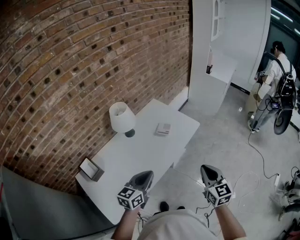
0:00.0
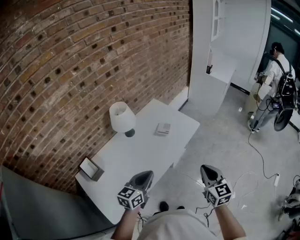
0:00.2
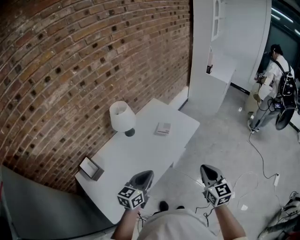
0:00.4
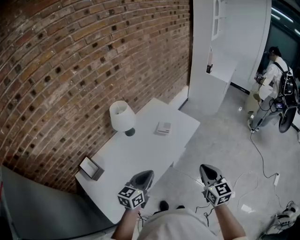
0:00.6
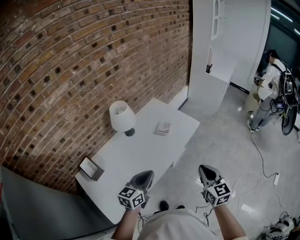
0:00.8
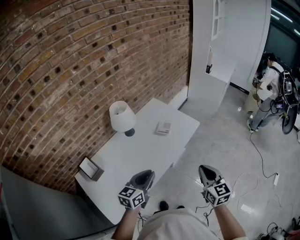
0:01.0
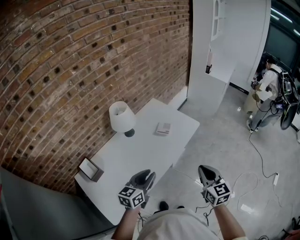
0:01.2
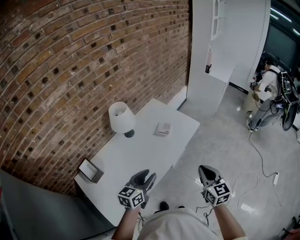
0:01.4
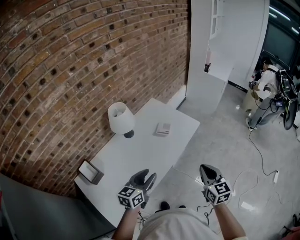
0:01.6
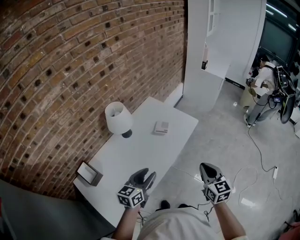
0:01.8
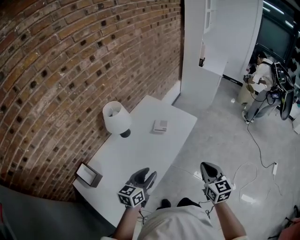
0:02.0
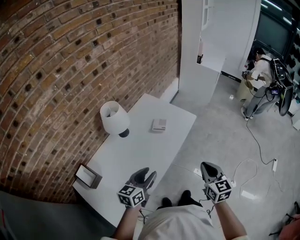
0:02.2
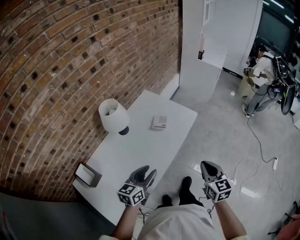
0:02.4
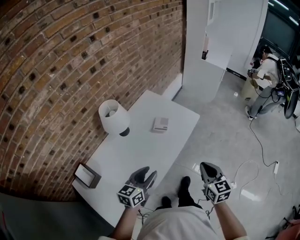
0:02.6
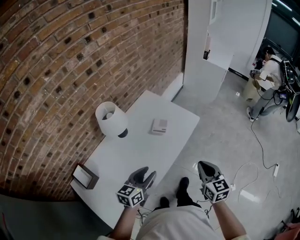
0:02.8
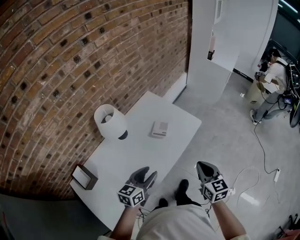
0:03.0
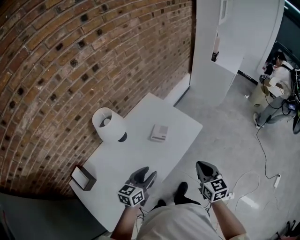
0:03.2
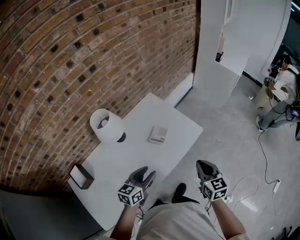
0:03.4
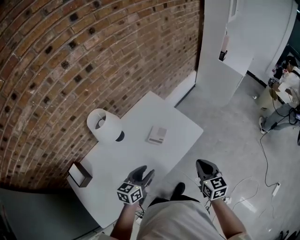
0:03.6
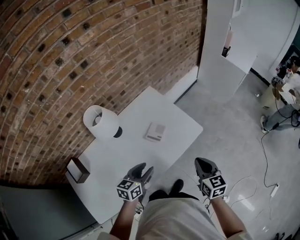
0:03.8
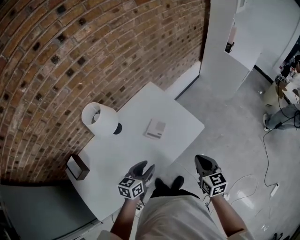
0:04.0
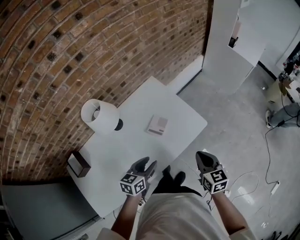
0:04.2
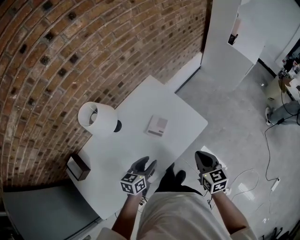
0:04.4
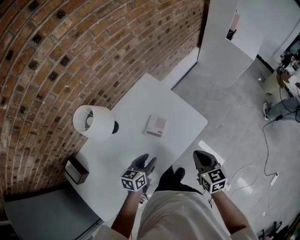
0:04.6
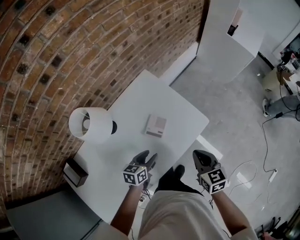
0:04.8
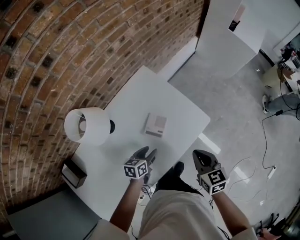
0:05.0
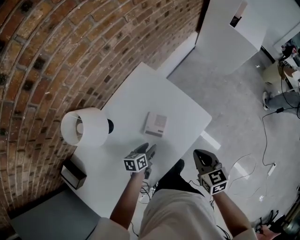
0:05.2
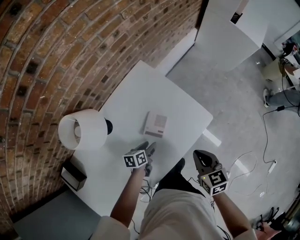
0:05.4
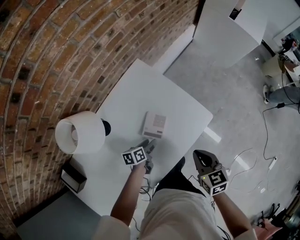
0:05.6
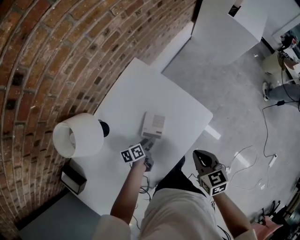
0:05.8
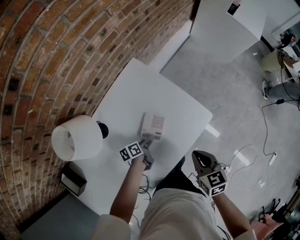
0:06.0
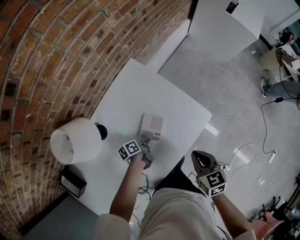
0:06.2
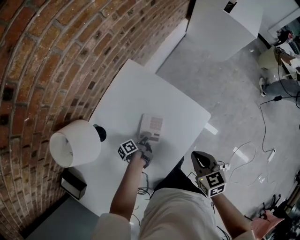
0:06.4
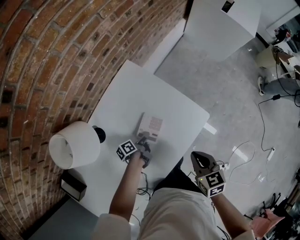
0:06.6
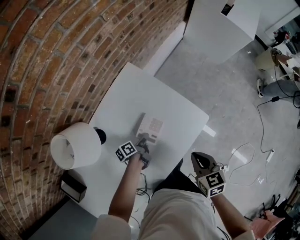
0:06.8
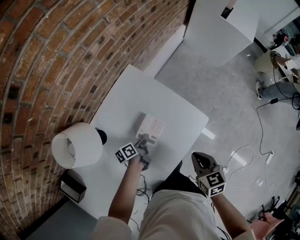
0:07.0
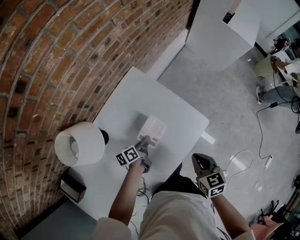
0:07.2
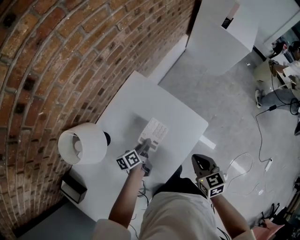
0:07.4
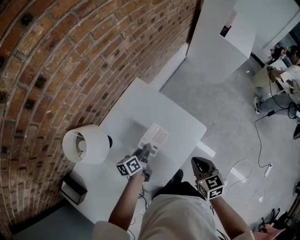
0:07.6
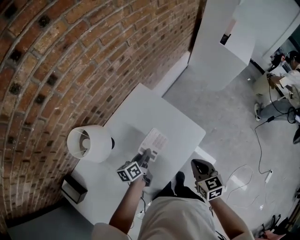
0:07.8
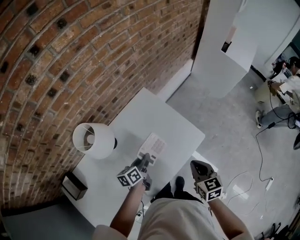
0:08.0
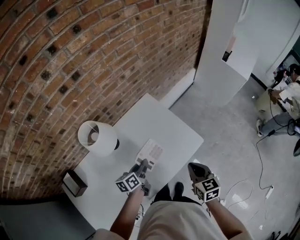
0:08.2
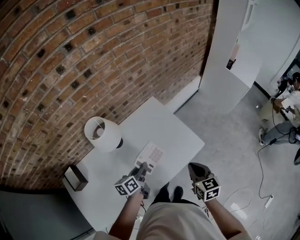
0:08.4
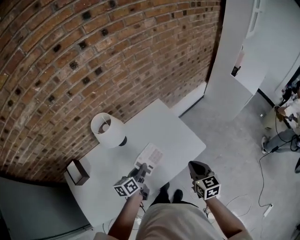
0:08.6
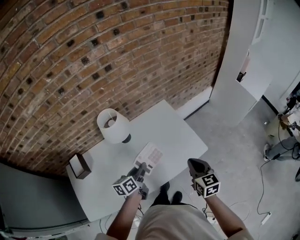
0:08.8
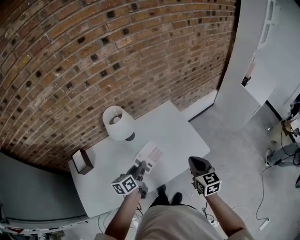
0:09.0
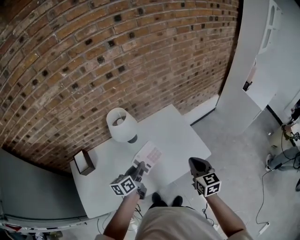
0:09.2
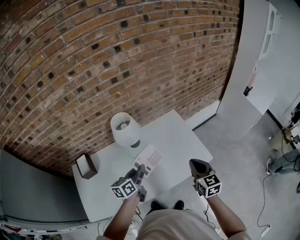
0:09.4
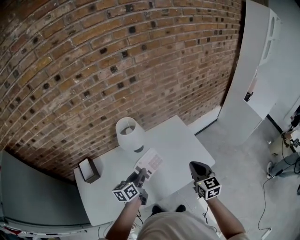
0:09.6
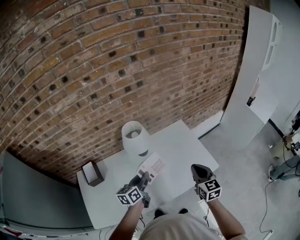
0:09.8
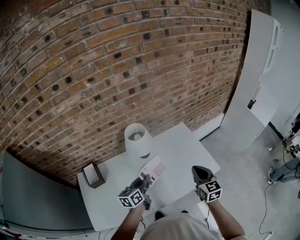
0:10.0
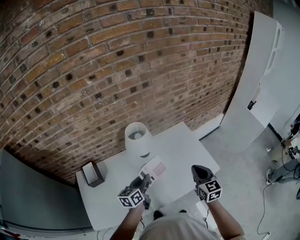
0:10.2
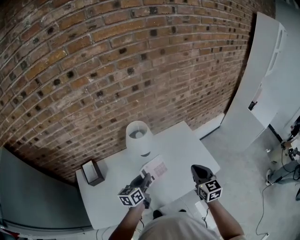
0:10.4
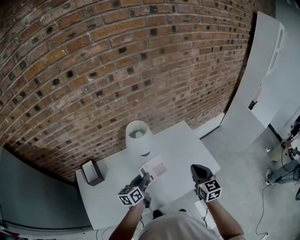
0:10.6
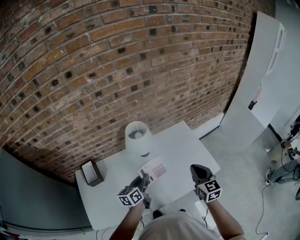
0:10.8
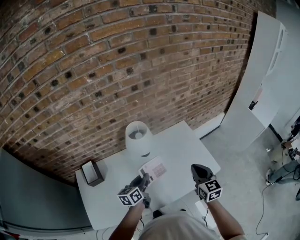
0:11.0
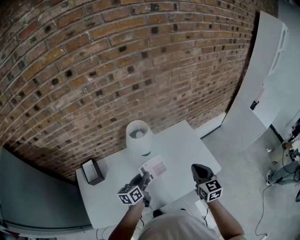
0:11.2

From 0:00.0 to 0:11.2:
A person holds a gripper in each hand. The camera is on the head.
From 0:00.0 to 0:01.6: The left gripper opens up.
From 0:01.6 to 0:03.2: Both grippers move forward, about 15 cm.
From 0:03.2 to 0:04.8: Both grippers travel together forward and downward, approximately 20 cm. The left gripper swivels approximately 20 degrees.
From 0:04.8 to 0:06.4: The left gripper is displaced downward and forward by about 20 cm, rolls counterclockwise, seen from behind, by approximately 60 degrees, and closes its fingers. The right gripper heads downward, covering approximately 5 cm.
From 0:06.4 to 0:08.0: The right gripper goes roughly 10 cm upward. The left gripper heads upward, covering about 20 cm, and changes its angle by approximately 40 degrees.
From 0:08.0 to 0:09.6: The right gripper shifts about 15 cm upward and to the left, and swivels about 30 degrees. Meanwhile the left gripper moves upward, backward and to the left, some 25 cm, and turns by some 30 degrees.
From 0:09.6 to 0:11.2: Both grippers travel together to the left, about 5 cm.

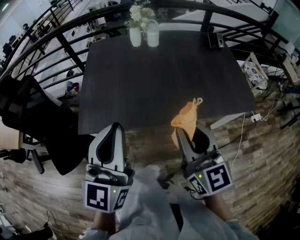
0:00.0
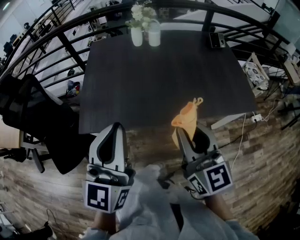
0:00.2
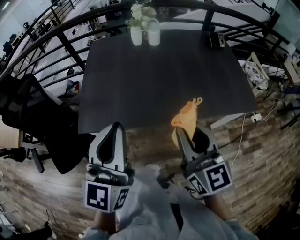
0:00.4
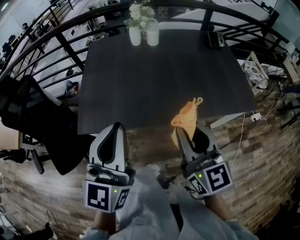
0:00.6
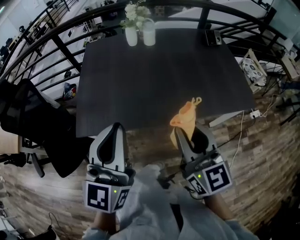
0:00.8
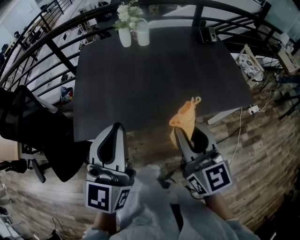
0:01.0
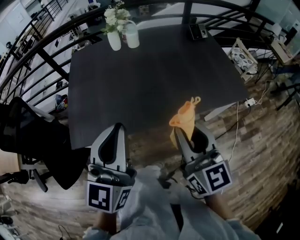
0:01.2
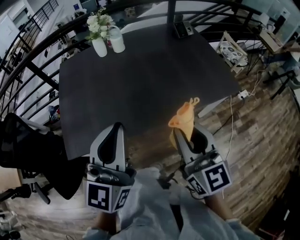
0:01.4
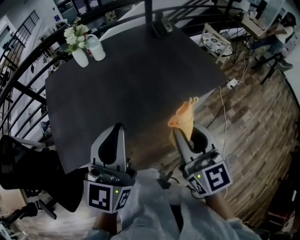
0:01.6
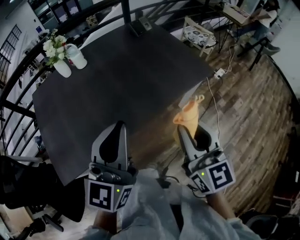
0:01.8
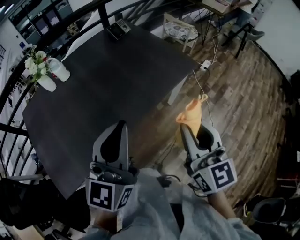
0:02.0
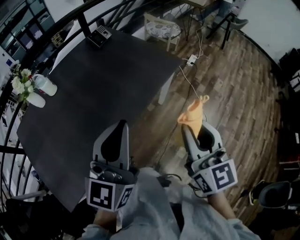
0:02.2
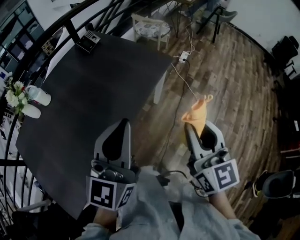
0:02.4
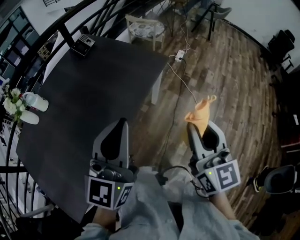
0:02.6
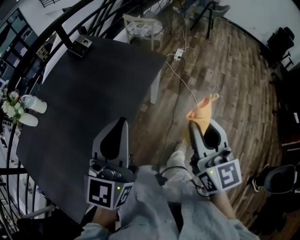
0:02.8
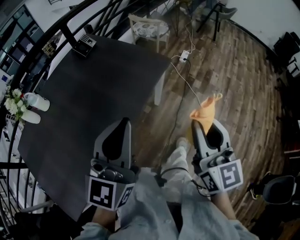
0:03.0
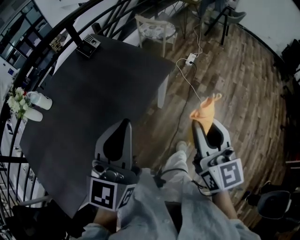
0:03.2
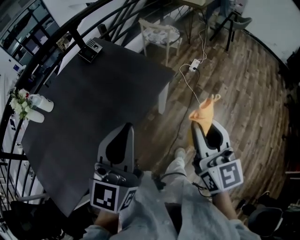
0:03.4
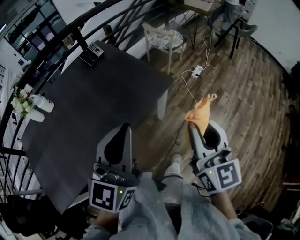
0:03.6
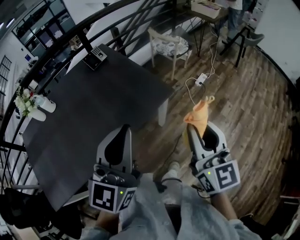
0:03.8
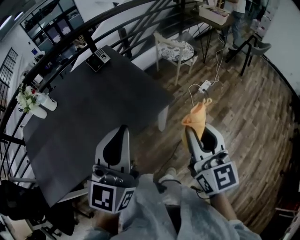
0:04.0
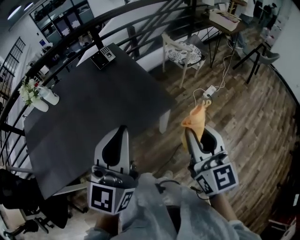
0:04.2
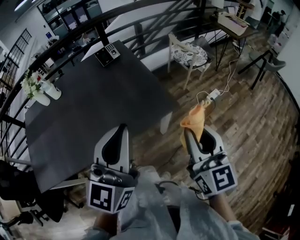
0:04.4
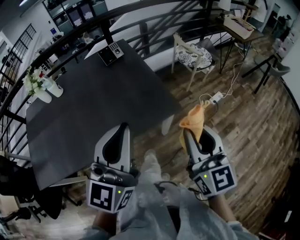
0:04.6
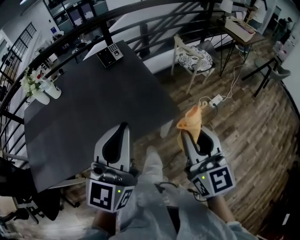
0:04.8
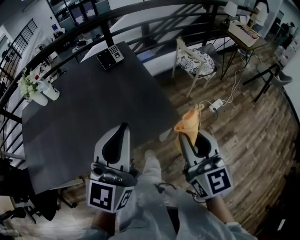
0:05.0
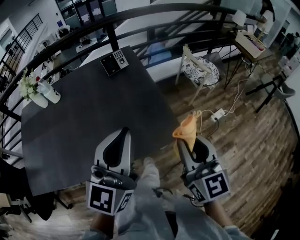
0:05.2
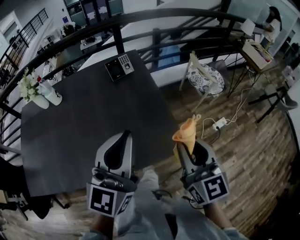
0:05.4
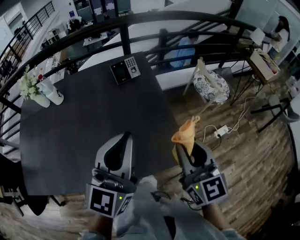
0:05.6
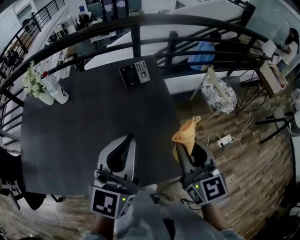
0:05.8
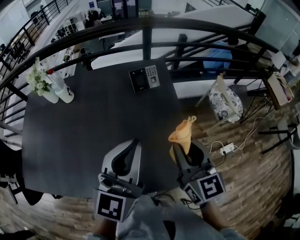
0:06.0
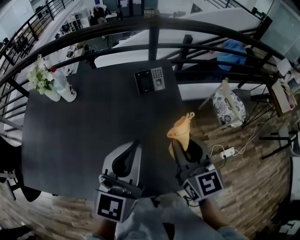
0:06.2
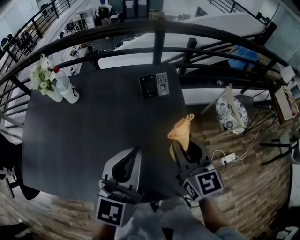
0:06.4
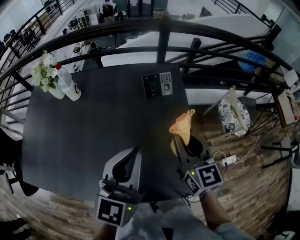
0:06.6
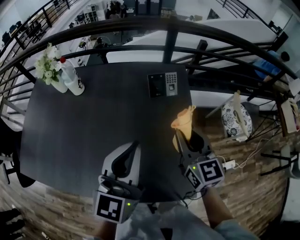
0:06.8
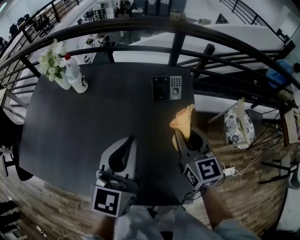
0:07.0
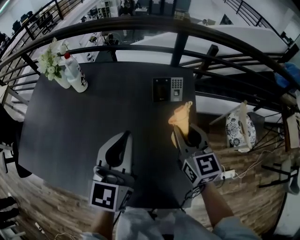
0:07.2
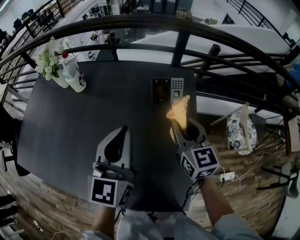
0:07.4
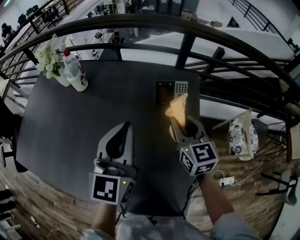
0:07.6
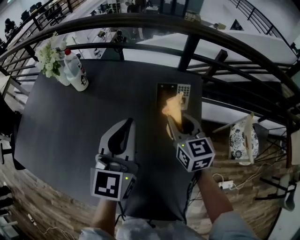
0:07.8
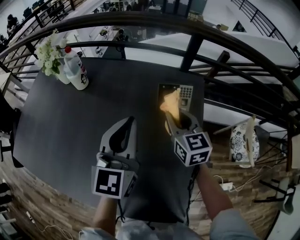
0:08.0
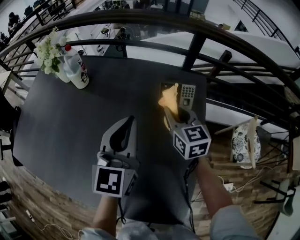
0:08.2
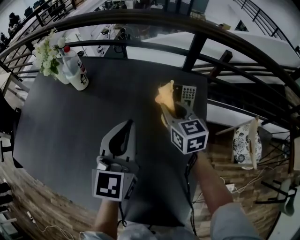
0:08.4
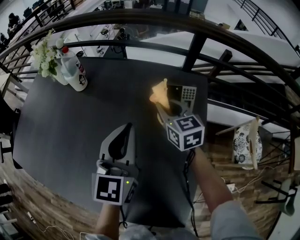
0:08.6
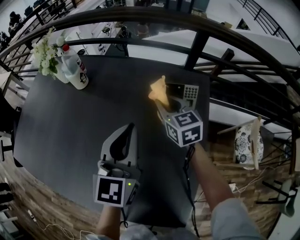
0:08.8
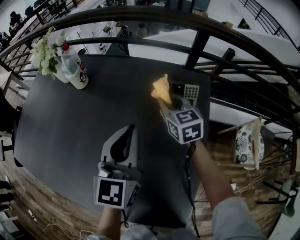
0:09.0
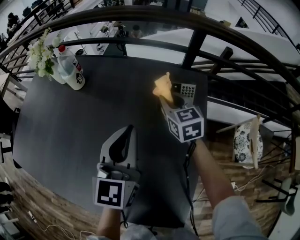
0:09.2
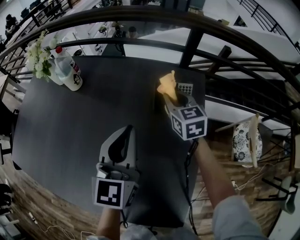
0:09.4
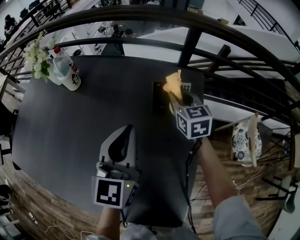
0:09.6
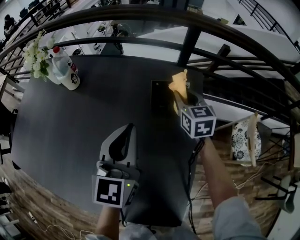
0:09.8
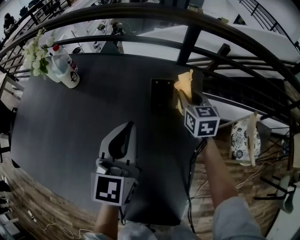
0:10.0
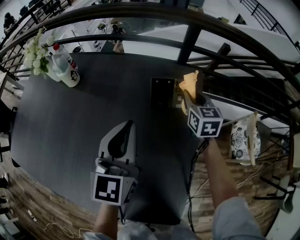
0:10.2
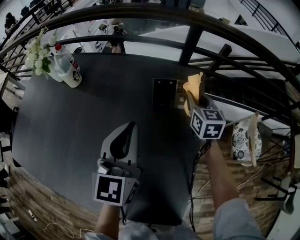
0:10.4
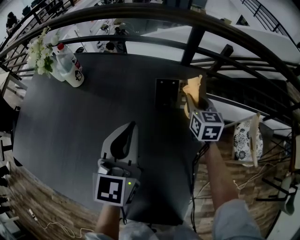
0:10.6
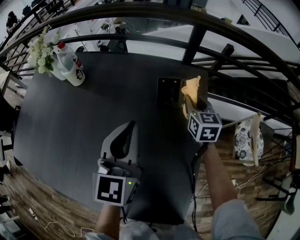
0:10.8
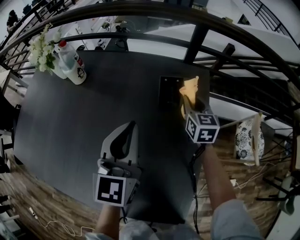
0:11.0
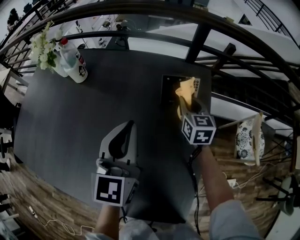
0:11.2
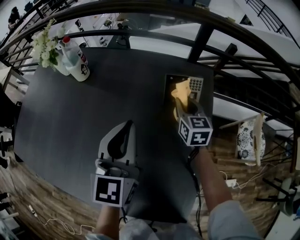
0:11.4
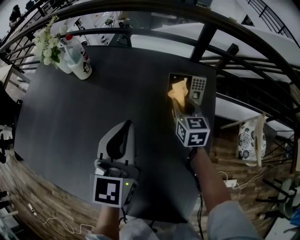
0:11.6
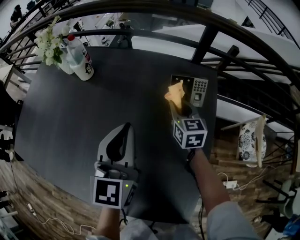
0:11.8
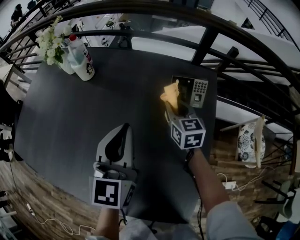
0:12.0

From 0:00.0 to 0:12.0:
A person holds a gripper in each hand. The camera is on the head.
From 0:00.0 to 0:01.6: The right gripper travels to the right by roughly 10 cm, and swivels some 20 degrees; the left gripper shifts some 15 cm to the right and forward, and swivels roughly 20 degrees.
From 0:01.6 to 0:03.0: The right gripper changes place by roughly 20 cm, and swivels about 40 degrees. Meanwhile the left gripper shifts by some 20 cm, and changes its angle by about 30 degrees.
From 0:03.0 to 0:04.4: The right gripper shifts by roughly 25 cm, and changes its angle by some 30 degrees. Meanwhile the left gripper moves about 20 cm, and swivels approximately 30 degrees.
From 0:04.4 to 0:06.0: Both grippers move forward, some 30 cm. The right gripper swivels about 30 degrees.
From 0:06.0 to 0:07.6: The right gripper heads forward, covering some 25 cm; the left gripper shifts roughly 15 cm forward and downward, and rotates some 20 degrees.
From 0:07.6 to 0:09.0: The right gripper moves forward and downward, some 15 cm, while the left gripper heads downward, covering roughly 5 cm.
From 0:09.0 to 0:10.4: The right gripper is displaced to the right by roughly 15 cm.
From 0:10.4 to 0:12.0: The left gripper is displaced to the left by approximately 5 cm; the right gripper is displaced to the left by some 15 cm.
